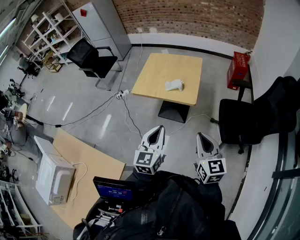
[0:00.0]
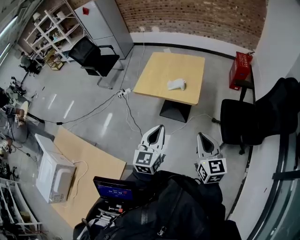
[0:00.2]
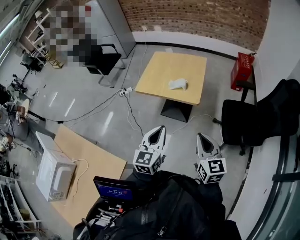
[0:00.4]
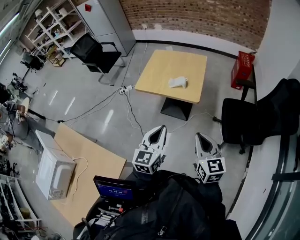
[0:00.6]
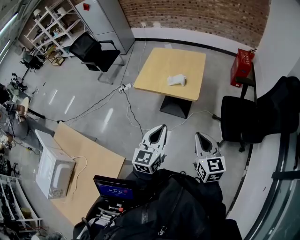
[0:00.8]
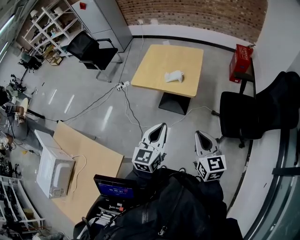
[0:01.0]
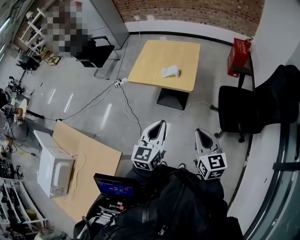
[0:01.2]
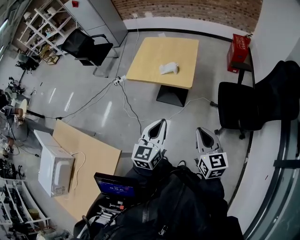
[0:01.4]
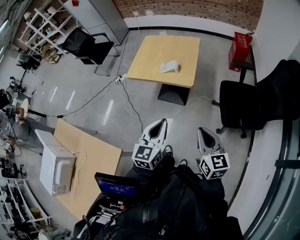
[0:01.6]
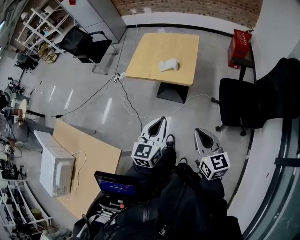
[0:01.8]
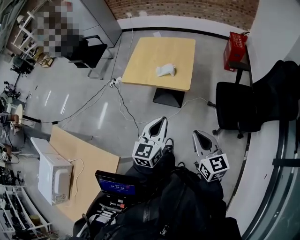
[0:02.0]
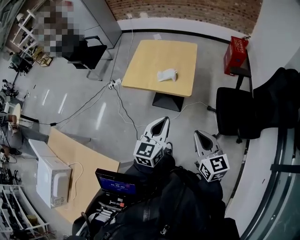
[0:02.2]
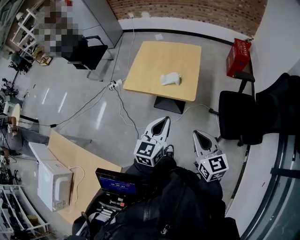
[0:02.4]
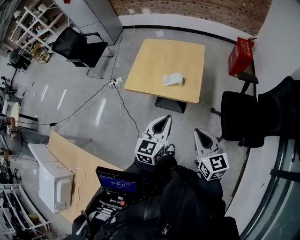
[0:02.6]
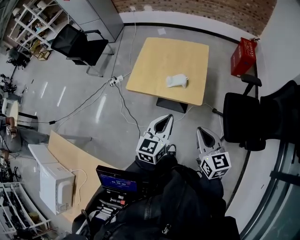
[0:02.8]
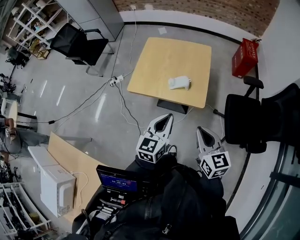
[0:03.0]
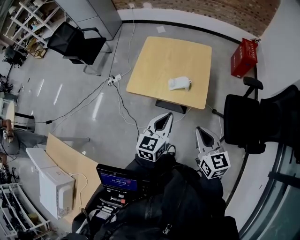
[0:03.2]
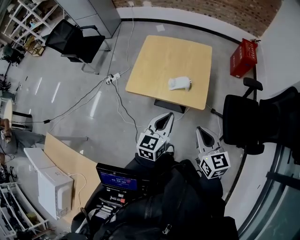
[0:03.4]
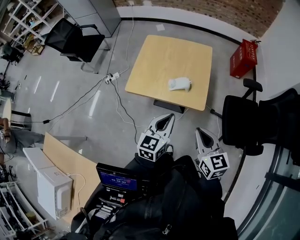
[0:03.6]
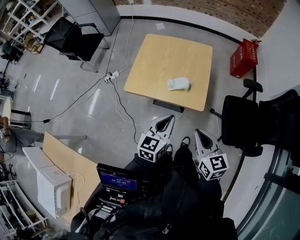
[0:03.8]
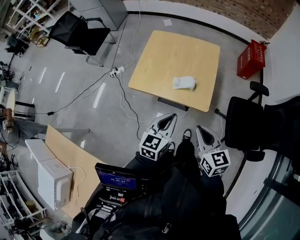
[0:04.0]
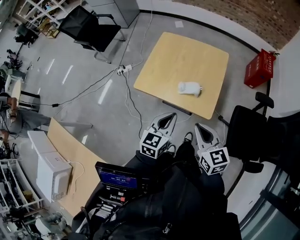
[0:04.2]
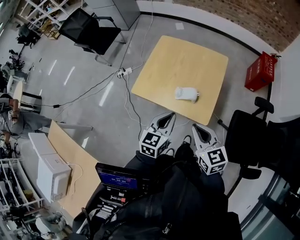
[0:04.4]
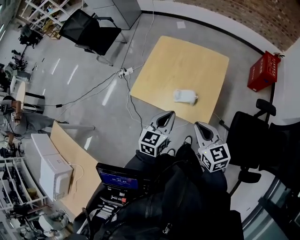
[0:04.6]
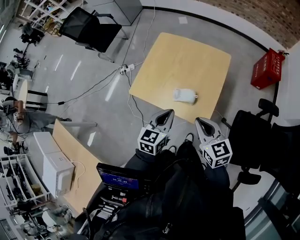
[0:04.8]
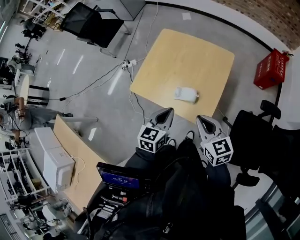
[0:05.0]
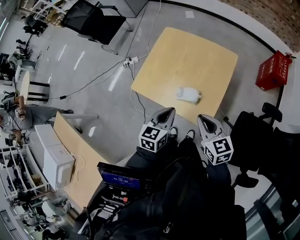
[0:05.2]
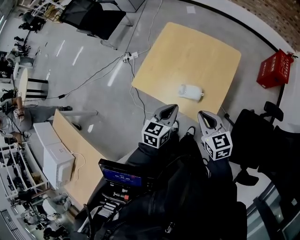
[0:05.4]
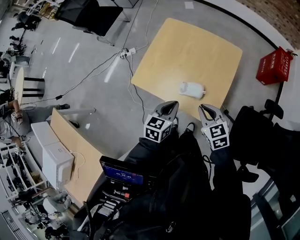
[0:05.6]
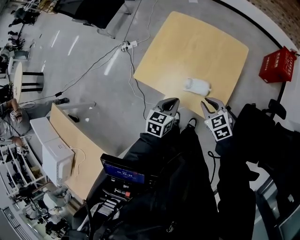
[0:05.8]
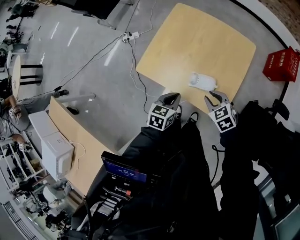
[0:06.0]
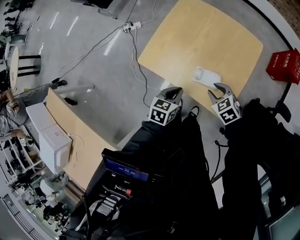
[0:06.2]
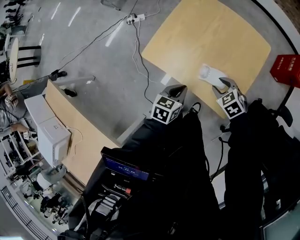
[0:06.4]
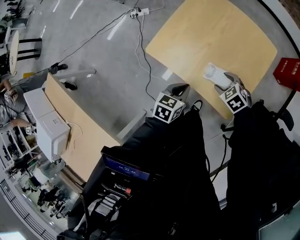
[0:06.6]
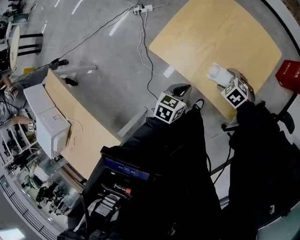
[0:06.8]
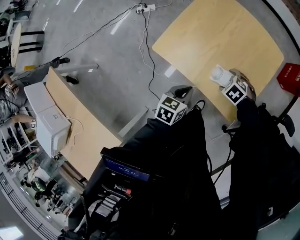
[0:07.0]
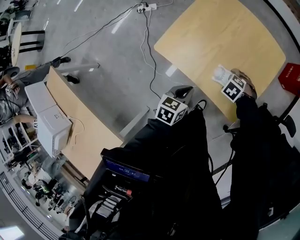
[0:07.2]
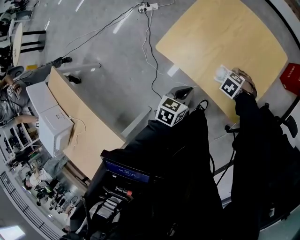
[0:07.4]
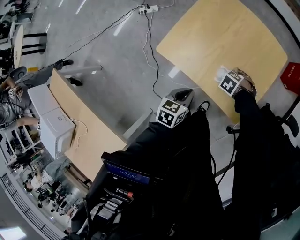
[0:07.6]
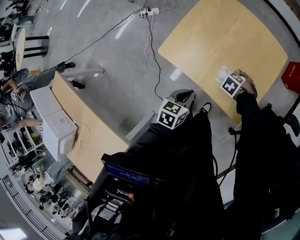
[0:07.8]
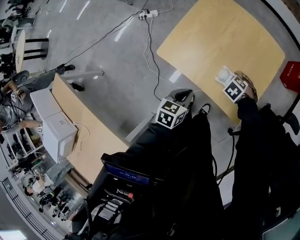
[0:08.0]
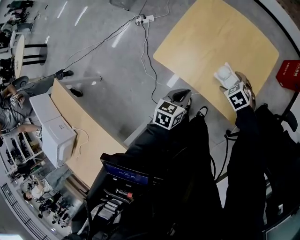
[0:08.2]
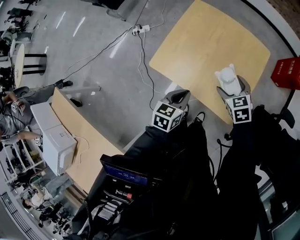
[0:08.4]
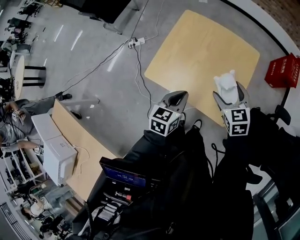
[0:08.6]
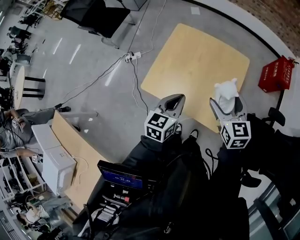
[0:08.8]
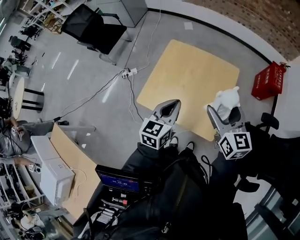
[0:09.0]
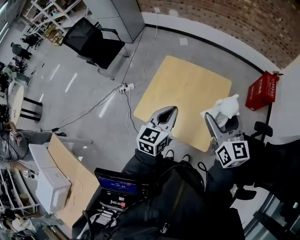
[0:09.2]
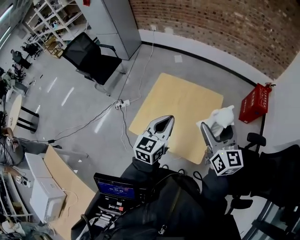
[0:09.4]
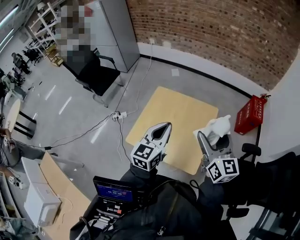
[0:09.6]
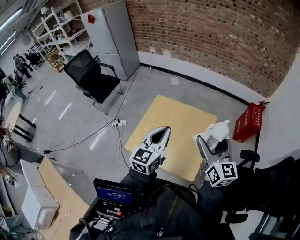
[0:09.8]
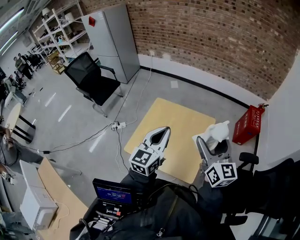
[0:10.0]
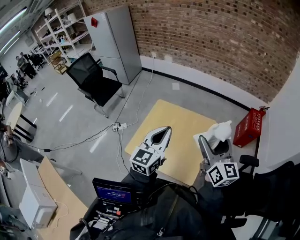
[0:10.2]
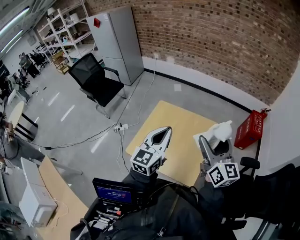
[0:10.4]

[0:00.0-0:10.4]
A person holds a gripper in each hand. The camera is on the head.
0:00.0 to 0:01.4: The left gripper travels to the right by approximately 5 cm. Meanwhile the right gripper moves roughly 5 cm.
0:01.4 to 0:03.0: The right gripper travels forward and to the left by about 25 cm, while the left gripper travels forward by about 25 cm.
0:03.0 to 0:04.4: The grippers both shift forward by about 15 cm.
0:04.4 to 0:06.0: The two grippers go some 25 cm downward and forward. The right gripper tips its fingers downward by some 30 degrees. The left gripper changes its angle by about 20 degrees.
0:06.0 to 0:07.4: The left gripper ends up about 5 cm from where it was. Meanwhile the right gripper travels downward by approximately 15 cm, tips its fingers downward by approximately 30 degrees, and opens up.
0:07.4 to 0:09.0: The right gripper is displaced upward by about 40 cm, and points its fingers approximately 70 degrees further upward, while the left gripper is displaced upward by approximately 25 cm, and turns by some 30 degrees.
0:09.0 to 0:10.4: The left gripper shifts some 15 cm upward, and turns by some 20 degrees; the right gripper is displaced upward and to the right by about 15 cm, and rotates some 20 degrees.

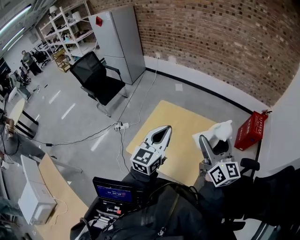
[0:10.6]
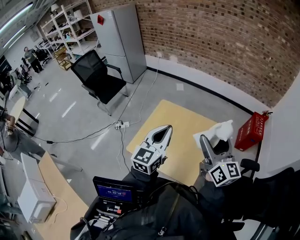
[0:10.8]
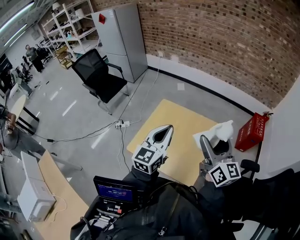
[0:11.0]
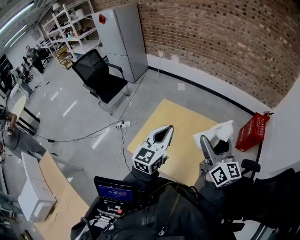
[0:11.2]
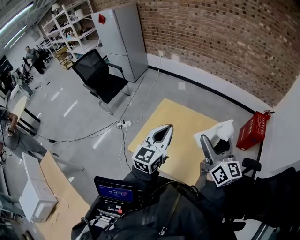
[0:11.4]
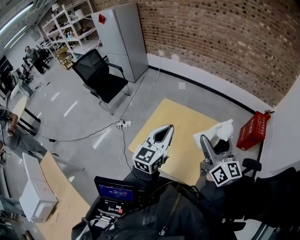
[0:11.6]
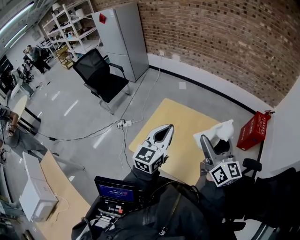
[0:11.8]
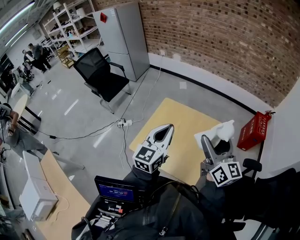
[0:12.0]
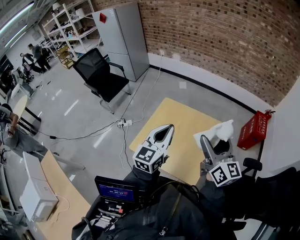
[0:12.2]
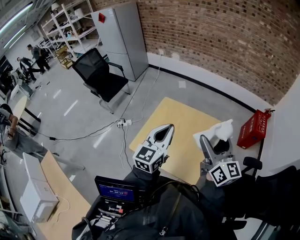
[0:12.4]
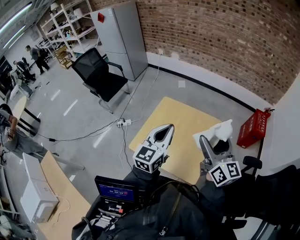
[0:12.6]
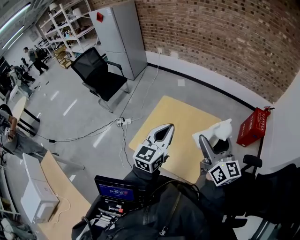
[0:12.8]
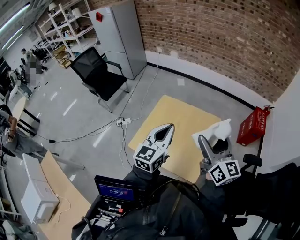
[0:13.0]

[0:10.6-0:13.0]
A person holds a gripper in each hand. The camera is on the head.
0:10.6 to 0:13.0: The grippers move only a little.

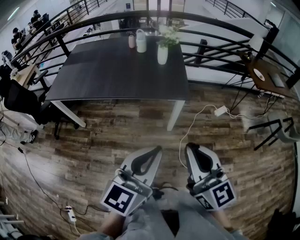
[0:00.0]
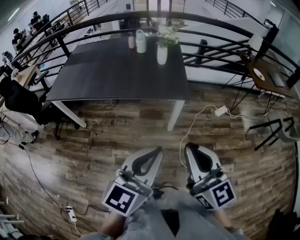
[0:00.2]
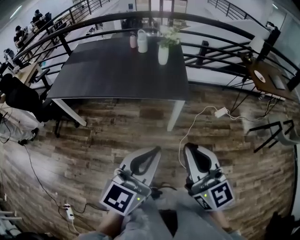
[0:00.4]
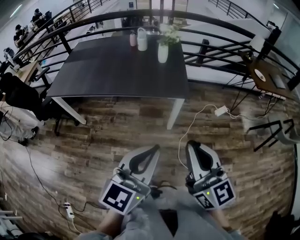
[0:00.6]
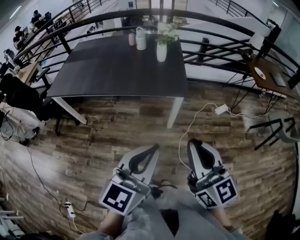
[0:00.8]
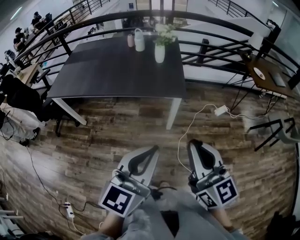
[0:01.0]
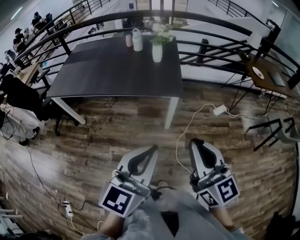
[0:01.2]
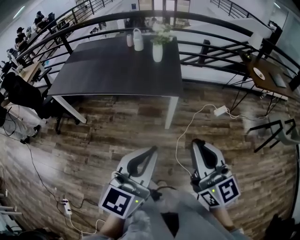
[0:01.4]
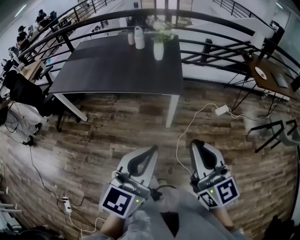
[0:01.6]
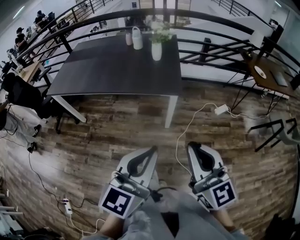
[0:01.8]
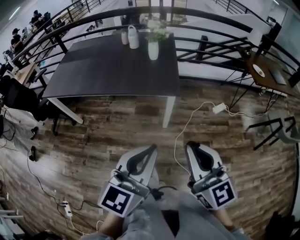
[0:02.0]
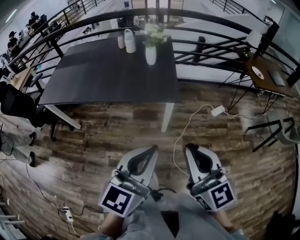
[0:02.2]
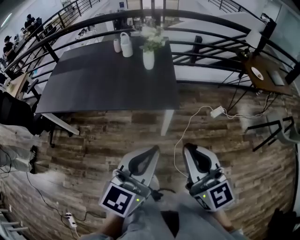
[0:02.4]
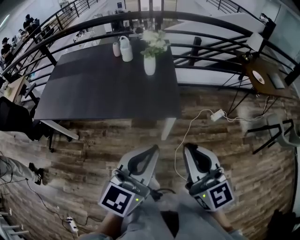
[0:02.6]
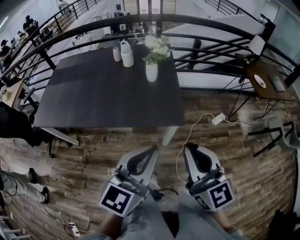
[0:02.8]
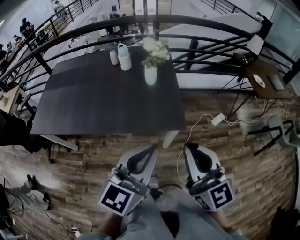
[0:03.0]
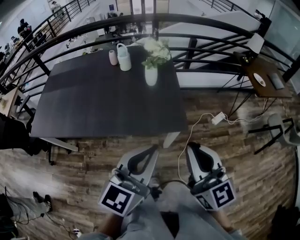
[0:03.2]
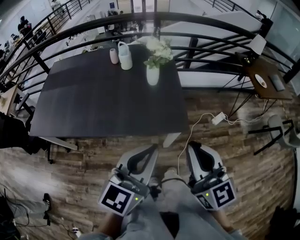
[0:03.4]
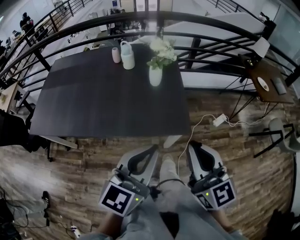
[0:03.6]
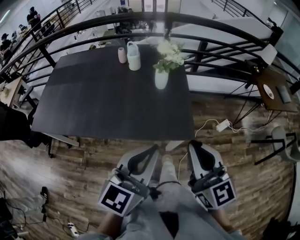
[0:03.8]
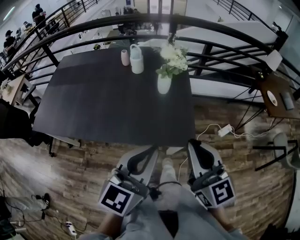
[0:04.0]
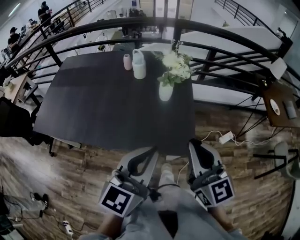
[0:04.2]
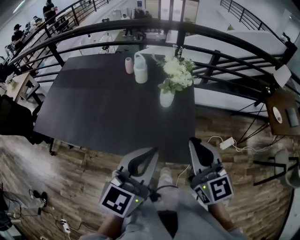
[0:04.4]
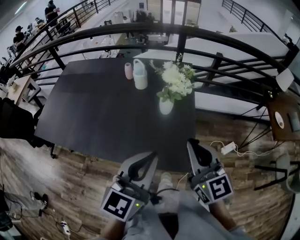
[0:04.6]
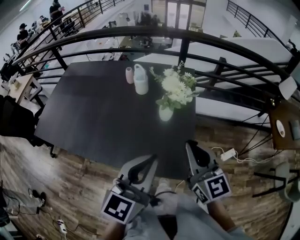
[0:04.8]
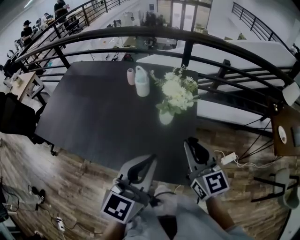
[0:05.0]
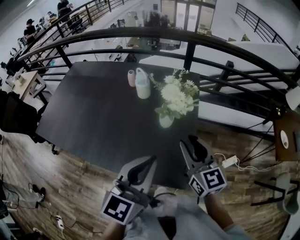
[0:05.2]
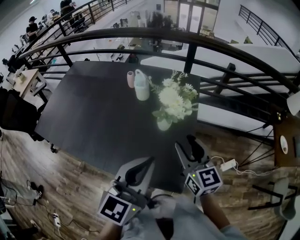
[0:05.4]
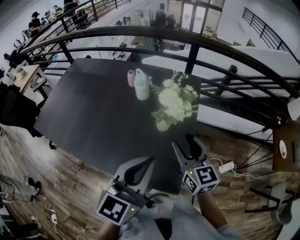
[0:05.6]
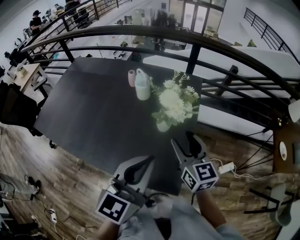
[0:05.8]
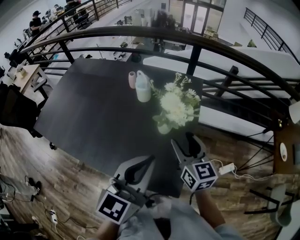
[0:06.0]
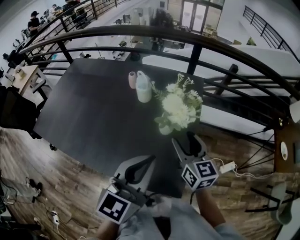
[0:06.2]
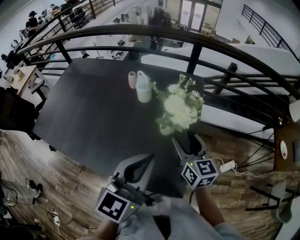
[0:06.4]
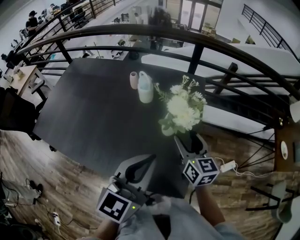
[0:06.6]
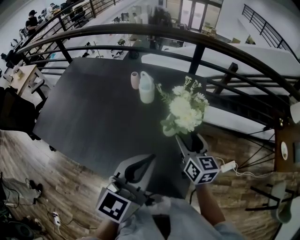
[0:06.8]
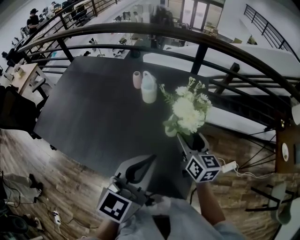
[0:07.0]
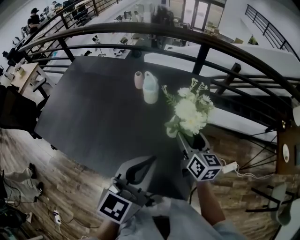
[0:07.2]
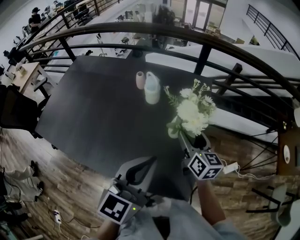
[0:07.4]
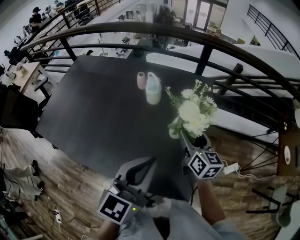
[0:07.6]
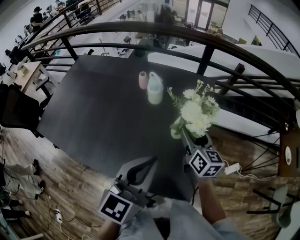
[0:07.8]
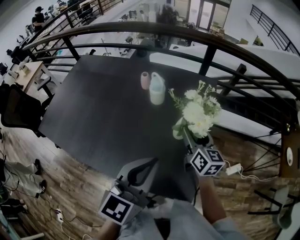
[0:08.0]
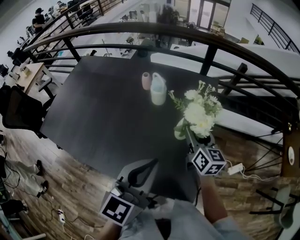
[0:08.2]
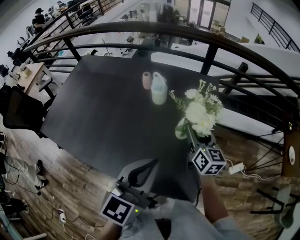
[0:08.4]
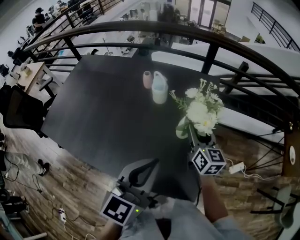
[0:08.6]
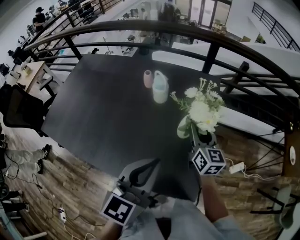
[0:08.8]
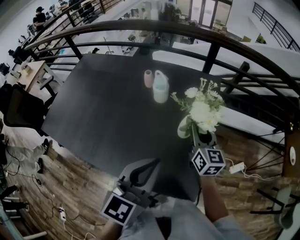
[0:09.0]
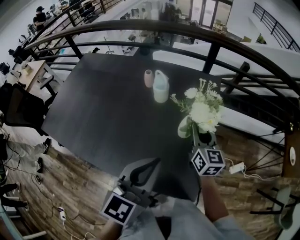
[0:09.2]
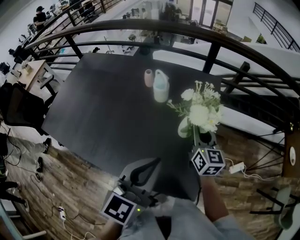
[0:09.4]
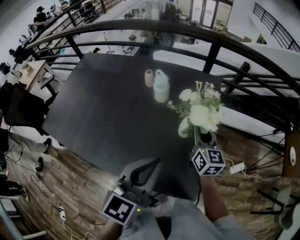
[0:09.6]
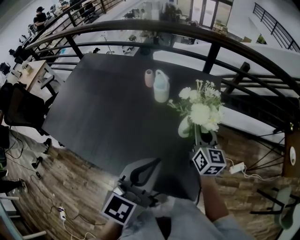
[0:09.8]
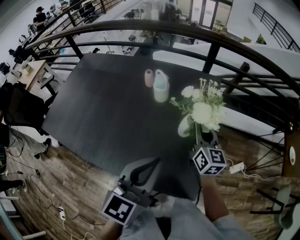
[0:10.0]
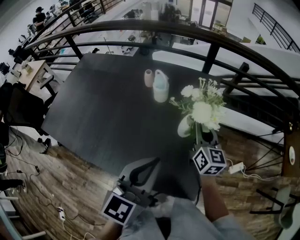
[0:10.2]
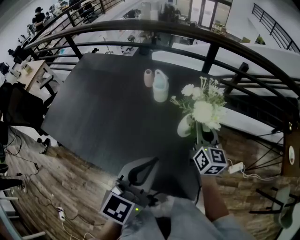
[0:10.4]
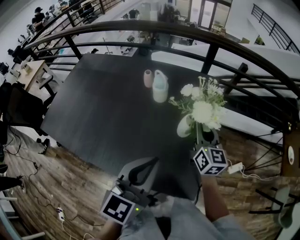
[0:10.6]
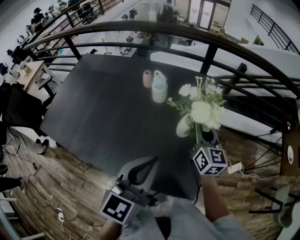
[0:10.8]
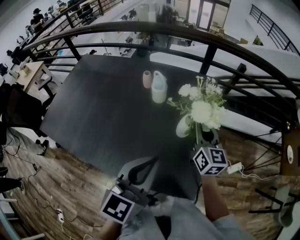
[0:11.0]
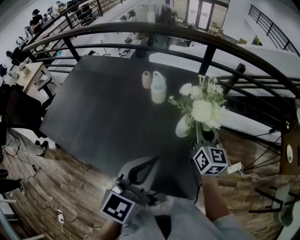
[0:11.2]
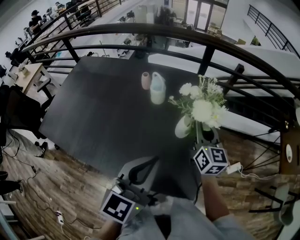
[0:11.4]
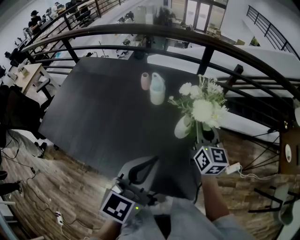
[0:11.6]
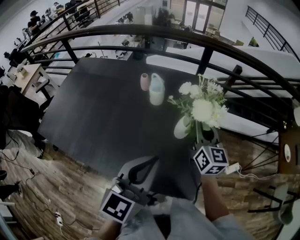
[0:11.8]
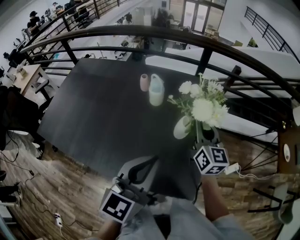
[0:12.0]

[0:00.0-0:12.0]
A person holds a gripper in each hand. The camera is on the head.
0:00.0 to 0:01.6: Both grippers move to the right, roughly 10 cm.
0:01.6 to 0:03.0: The grippers both shift forward by approximately 25 cm.
0:03.0 to 0:04.4: The two grippers go approximately 20 cm forward.
0:04.4 to 0:06.0: The left gripper shifts about 15 cm forward. Meanwhile the right gripper heads forward and downward, covering approximately 20 cm, and opens up.
0:06.0 to 0:07.6: The left gripper goes roughly 5 cm to the left. The right gripper is displaced forward by about 5 cm.
0:07.6 to 0:09.0: The right gripper closes up.
0:09.0 to 0:10.4: The grippers make only small movements.
0:10.4 to 0:12.0: The grippers stay close to where they were, moving slightly.
